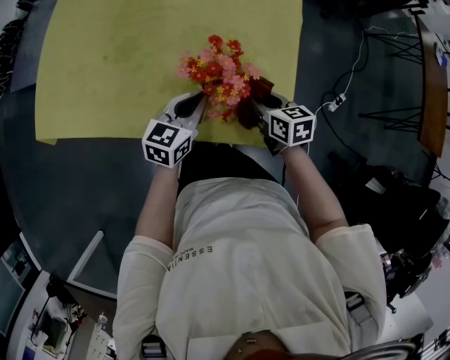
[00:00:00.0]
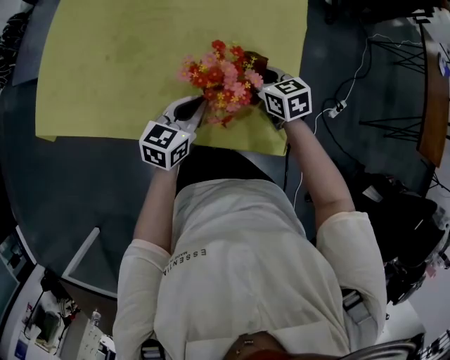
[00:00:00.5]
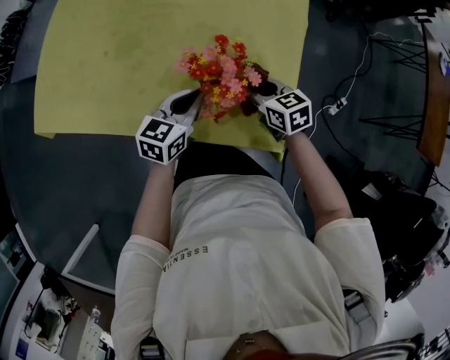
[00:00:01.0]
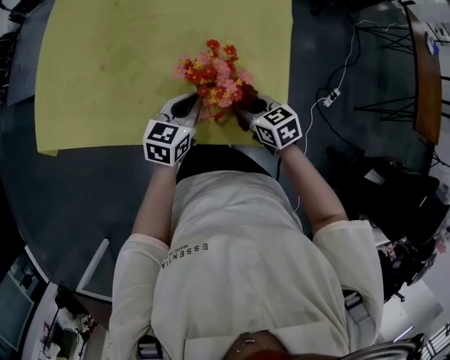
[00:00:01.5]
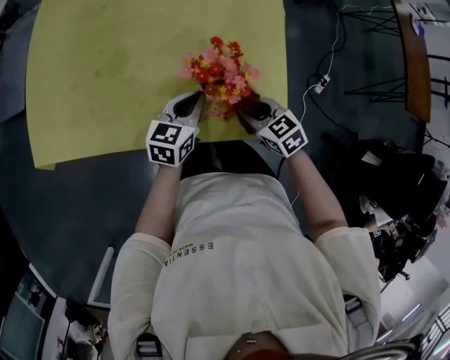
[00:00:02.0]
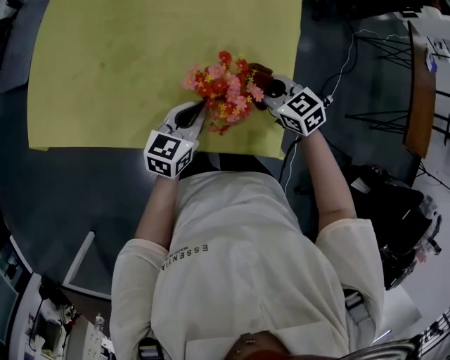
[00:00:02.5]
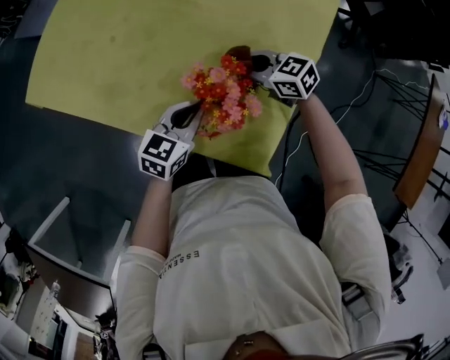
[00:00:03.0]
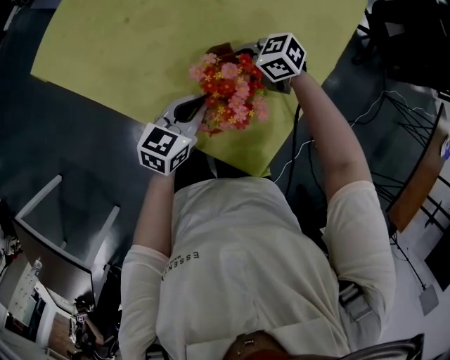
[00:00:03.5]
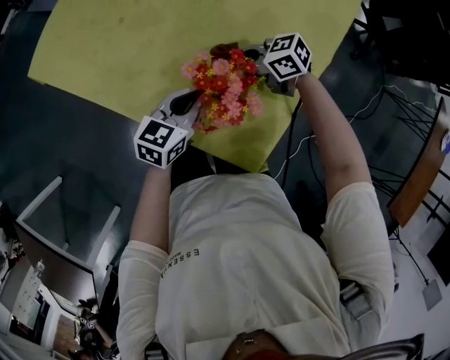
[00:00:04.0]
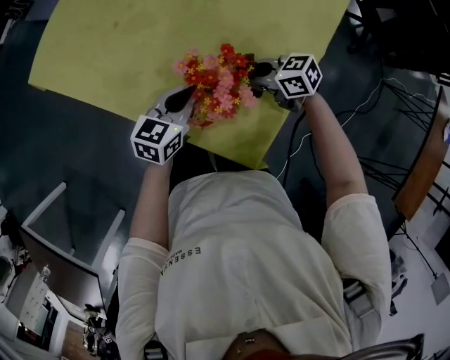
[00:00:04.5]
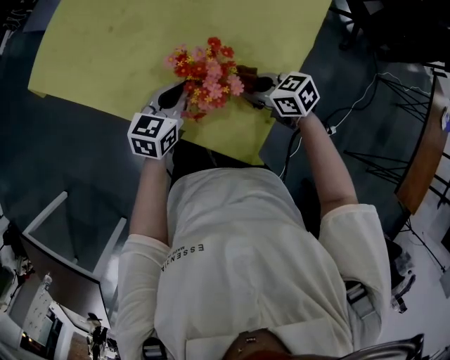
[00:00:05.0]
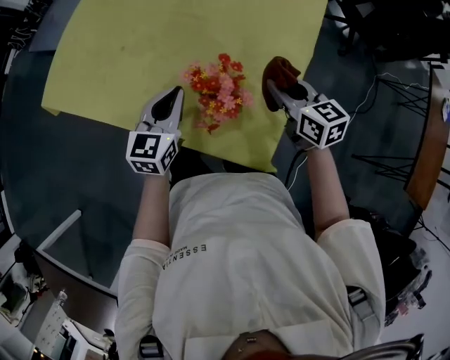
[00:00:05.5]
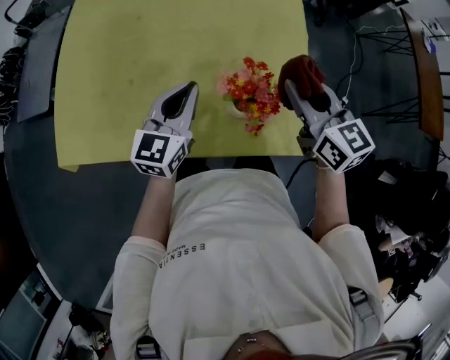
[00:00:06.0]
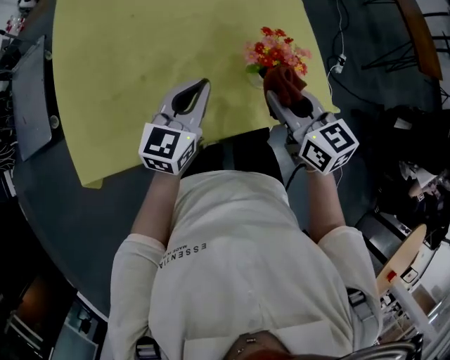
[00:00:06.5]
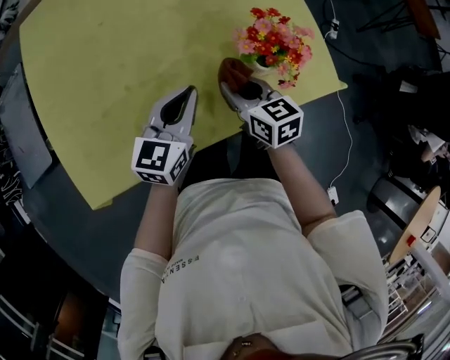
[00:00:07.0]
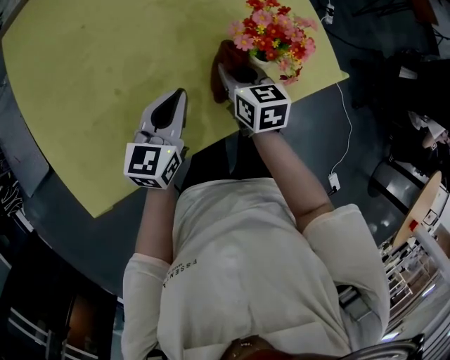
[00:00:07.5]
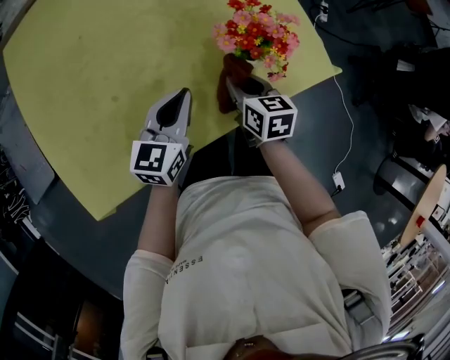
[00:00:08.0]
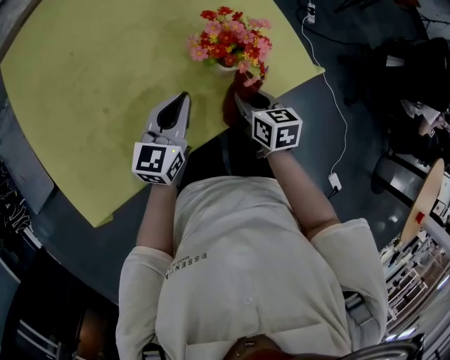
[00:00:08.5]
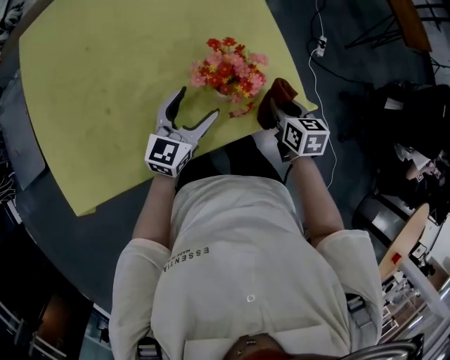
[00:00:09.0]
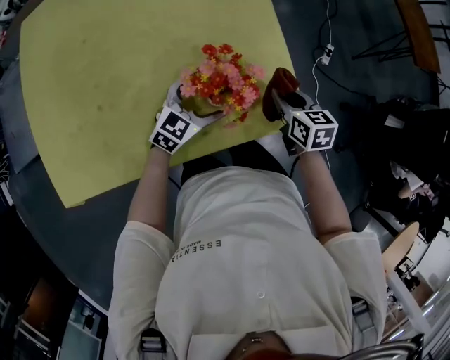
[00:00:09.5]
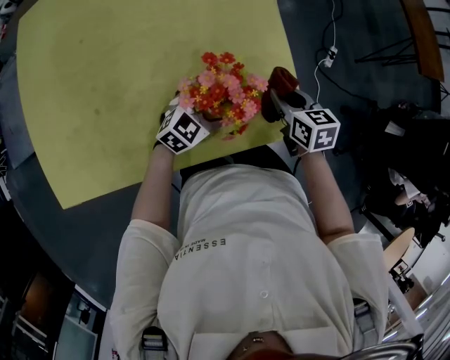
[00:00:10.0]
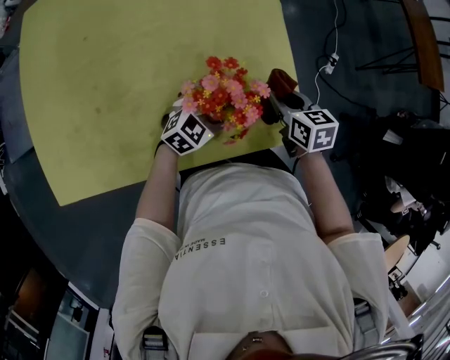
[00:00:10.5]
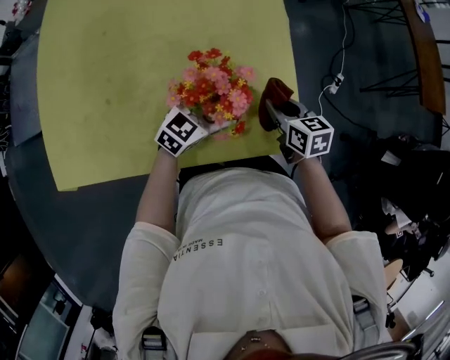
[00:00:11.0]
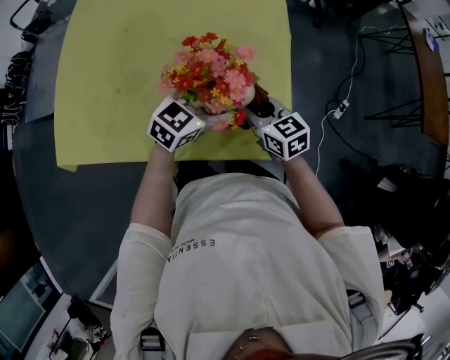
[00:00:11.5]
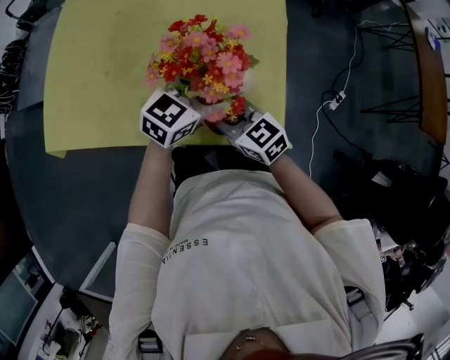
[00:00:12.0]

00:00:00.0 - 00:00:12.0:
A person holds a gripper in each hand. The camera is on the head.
00:00:00.0 - 00:00:02.0: The right gripper moves about 5 cm, and changes its angle by about 30 degrees.
00:00:02.0 - 00:00:04.0: The left gripper changes its angle by some 20 degrees; the right gripper moves approximately 15 cm, and changes its angle by roughly 60 degrees.
00:00:04.0 - 00:00:06.0: The left gripper moves upward, roughly 10 cm, and turns by roughly 30 degrees. Meanwhile the right gripper moves upward, some 20 cm, and rotates about 80 degrees.
00:00:06.0 - 00:00:08.0: The right gripper heads downward, covering some 25 cm, and rotates some 40 degrees. Meanwhile the left gripper goes about 10 cm downward, and rotates roughly 30 degrees.
00:00:08.0 - 00:00:10.0: The left gripper moves to the right, forward and downward, roughly 20 cm, turns by some 30 degrees, and opens its fingers. Meanwhile the right gripper goes about 20 cm to the right and forward.
00:00:10.0 - 00:00:12.0: The left gripper moves upward, approximately 15 cm, and changes its angle by roughly 30 degrees; the right gripper ends up about 15 cm from where it was, and rotates roughly 50 degrees.

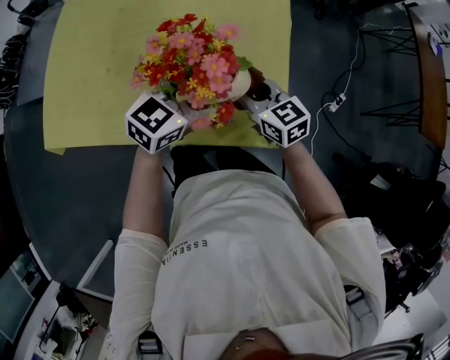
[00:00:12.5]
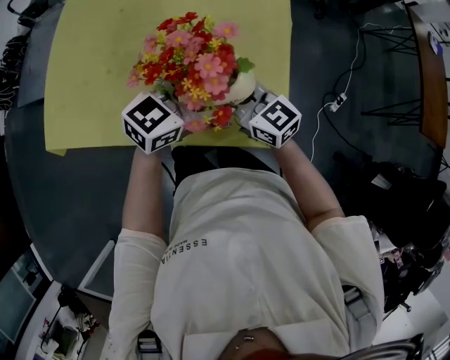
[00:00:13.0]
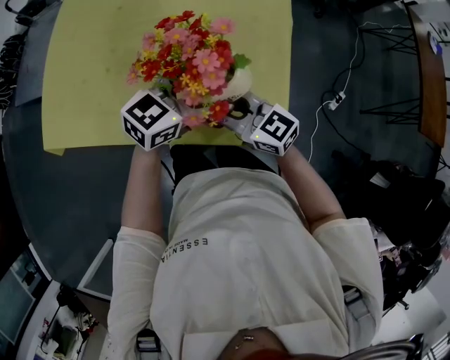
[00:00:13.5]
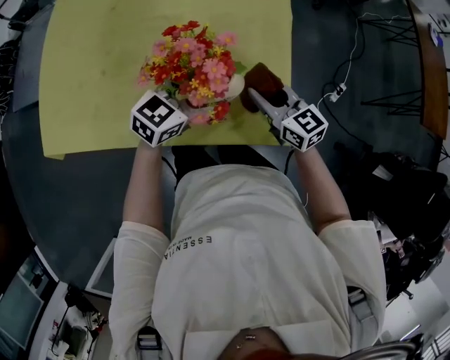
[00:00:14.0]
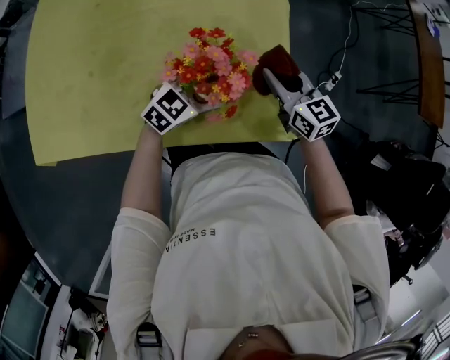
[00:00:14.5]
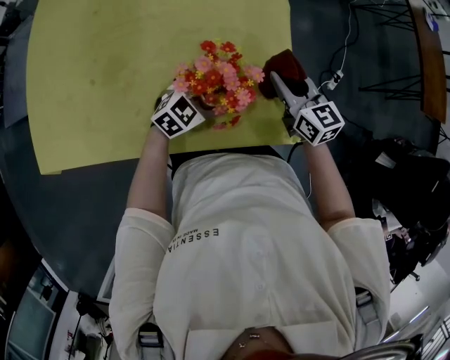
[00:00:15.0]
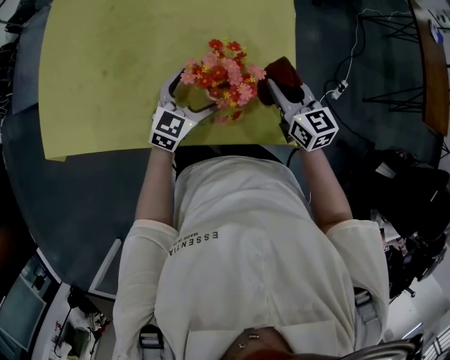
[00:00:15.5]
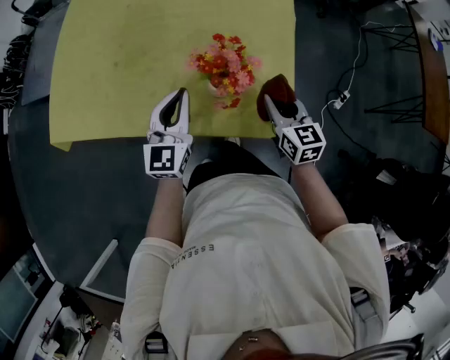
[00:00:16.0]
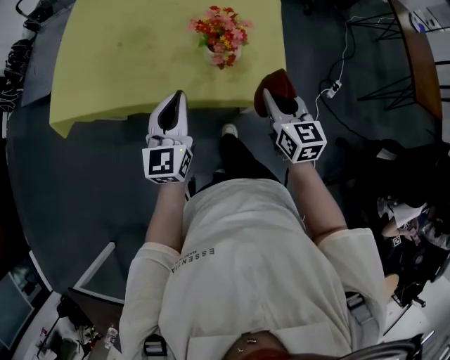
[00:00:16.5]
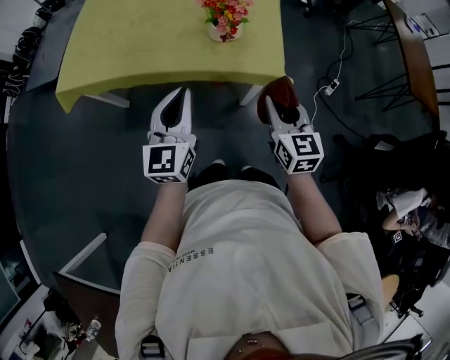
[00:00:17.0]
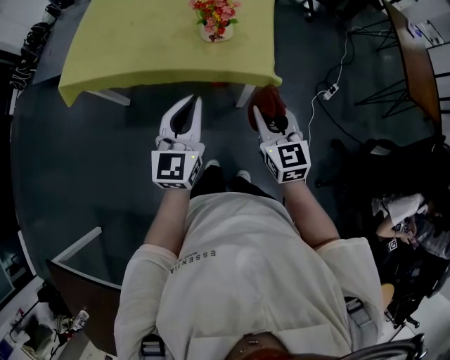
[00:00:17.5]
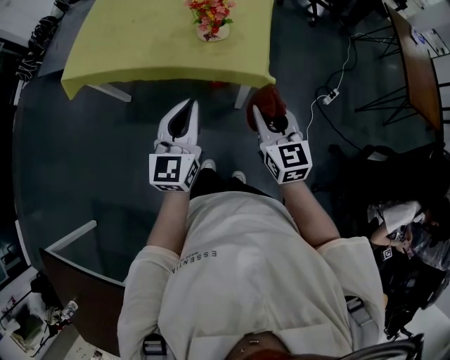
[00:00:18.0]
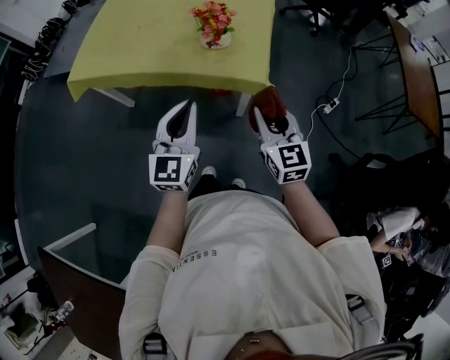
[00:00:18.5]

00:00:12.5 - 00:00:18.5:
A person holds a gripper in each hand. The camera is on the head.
00:00:12.5 - 00:00:14.5: The right gripper heads to the right, covering some 5 cm; the left gripper heads downward, covering some 15 cm.
00:00:14.5 - 00:00:16.5: The left gripper shifts by approximately 25 cm, changes its angle by roughly 60 degrees, and closes up, while the right gripper moves about 20 cm.
00:00:16.5 - 00:00:18.5: The right gripper shifts roughly 20 cm backward, while the left gripper shifts some 20 cm backward and to the right.

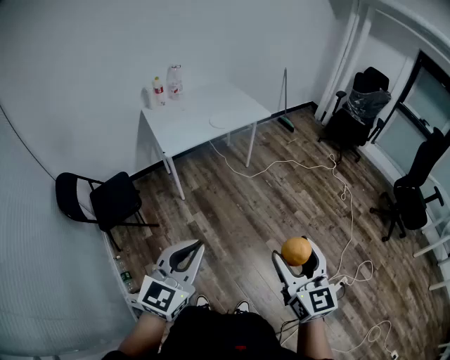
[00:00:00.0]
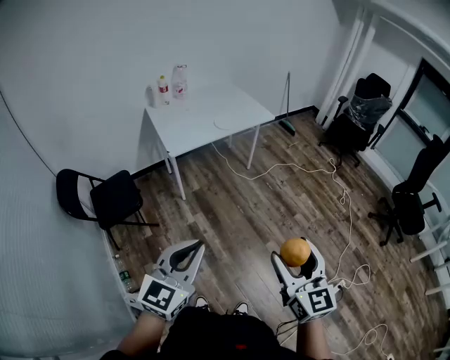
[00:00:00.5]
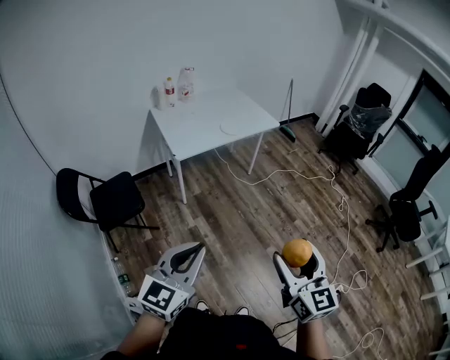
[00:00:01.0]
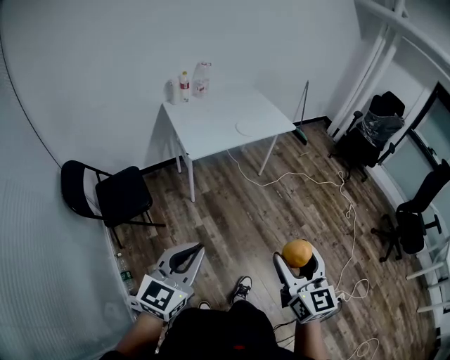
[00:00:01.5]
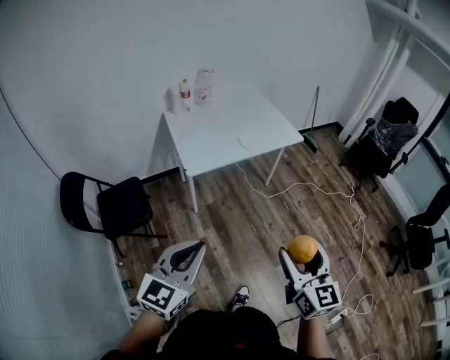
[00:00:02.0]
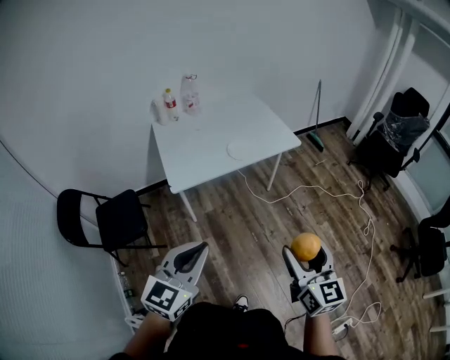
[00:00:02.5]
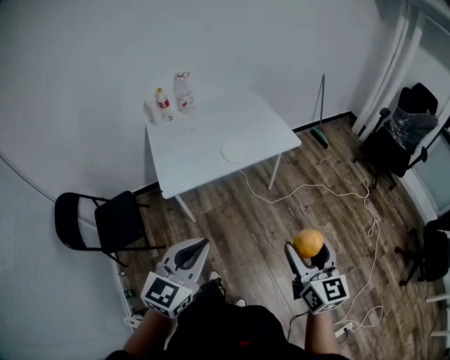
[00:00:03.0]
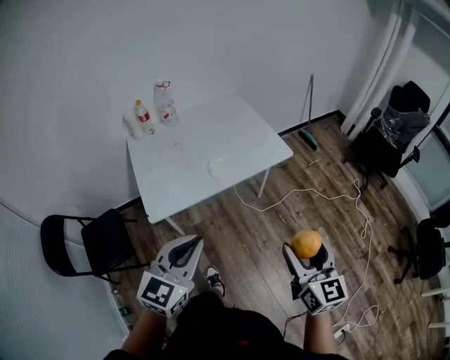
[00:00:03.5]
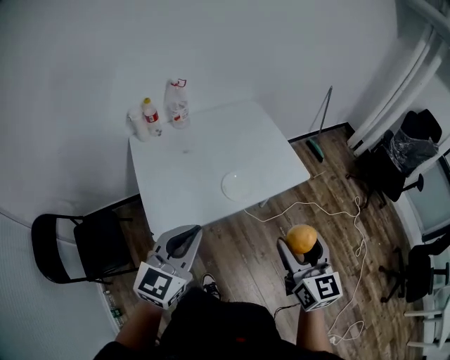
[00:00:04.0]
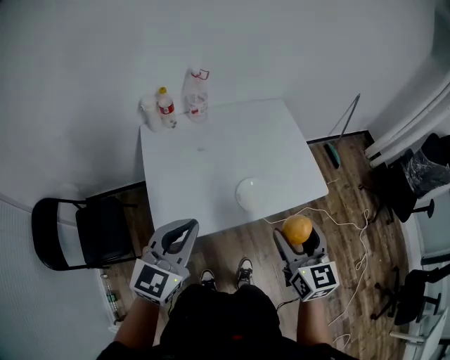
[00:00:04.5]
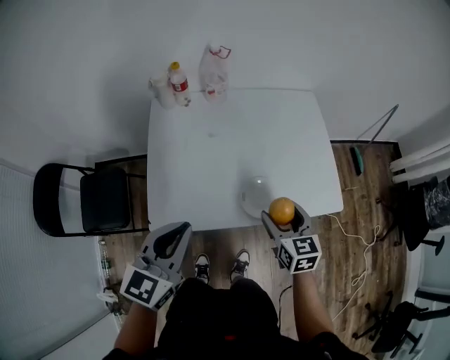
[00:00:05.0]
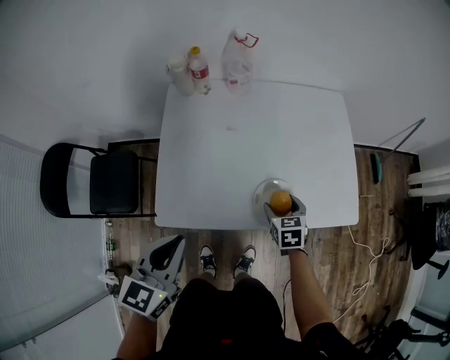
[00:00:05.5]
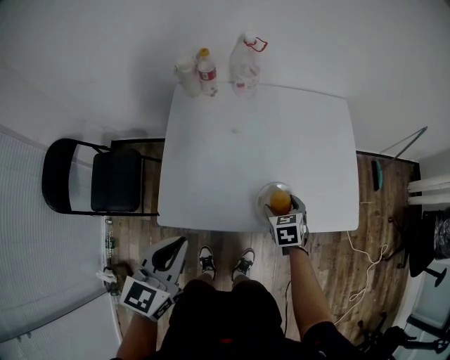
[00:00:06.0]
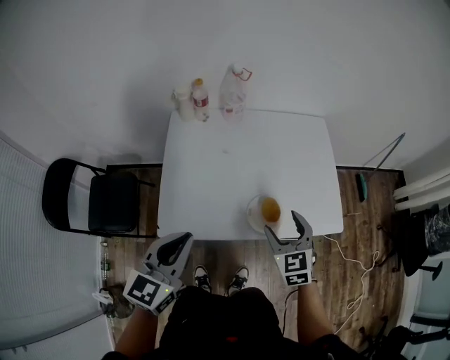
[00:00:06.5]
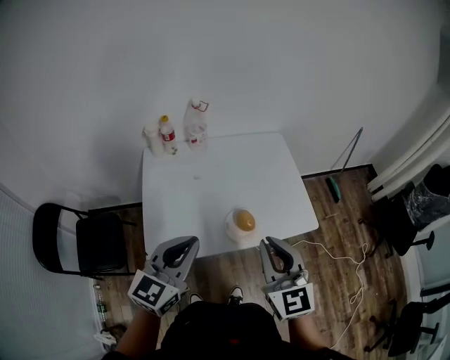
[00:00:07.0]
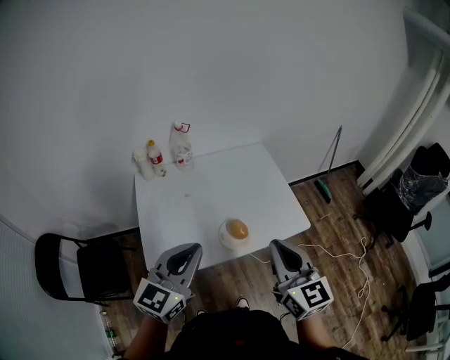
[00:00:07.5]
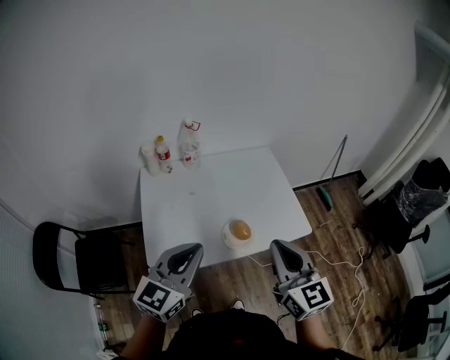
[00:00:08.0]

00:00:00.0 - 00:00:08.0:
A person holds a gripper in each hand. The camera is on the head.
00:00:00.0 - 00:00:02.0: The two grippers go about 25 cm forward and to the left.
00:00:02.0 - 00:00:04.0: The pair of grippers is taken forward, roughly 50 cm.
00:00:04.0 - 00:00:06.0: The left gripper is displaced downward, forward and to the left by about 15 cm, and swivels roughly 40 degrees. The right gripper moves downward and forward, roughly 50 cm, and points its fingers about 50 degrees further downward.
00:00:06.0 - 00:00:08.0: The left gripper goes some 15 cm upward and to the right, and rotates some 30 degrees; the right gripper is displaced upward and backward by about 40 cm, points its fingers about 50 degrees further upward, and closes.
